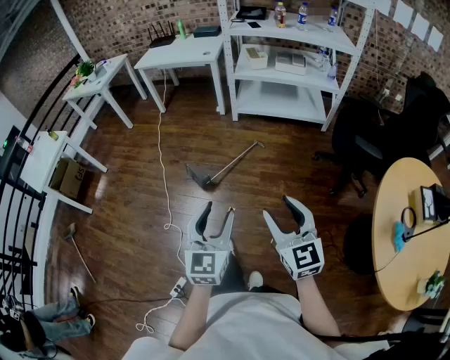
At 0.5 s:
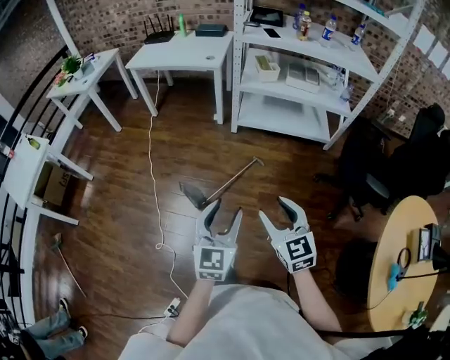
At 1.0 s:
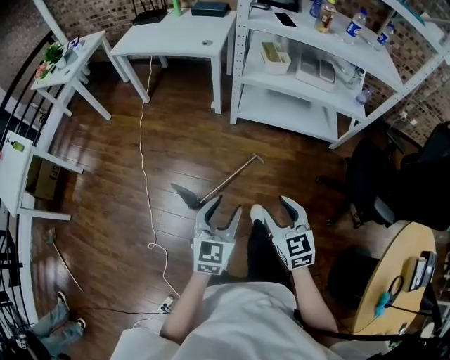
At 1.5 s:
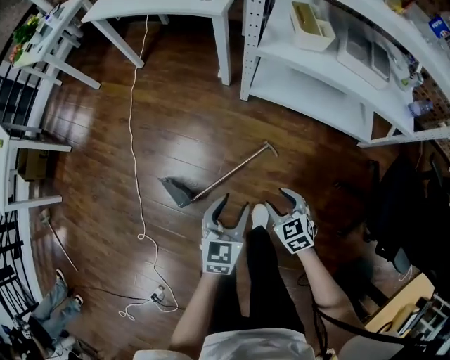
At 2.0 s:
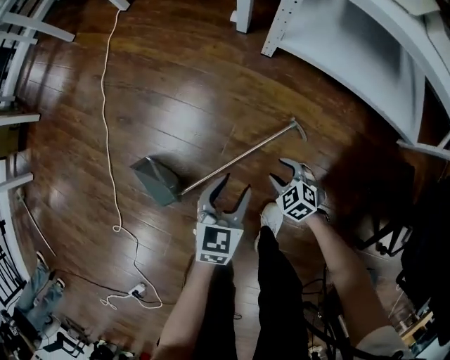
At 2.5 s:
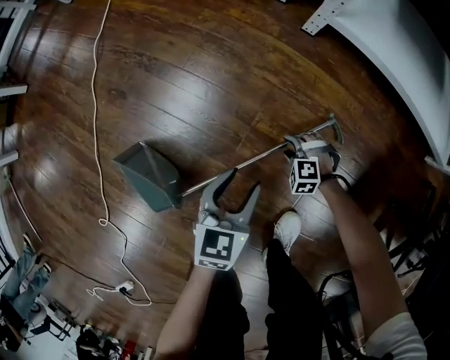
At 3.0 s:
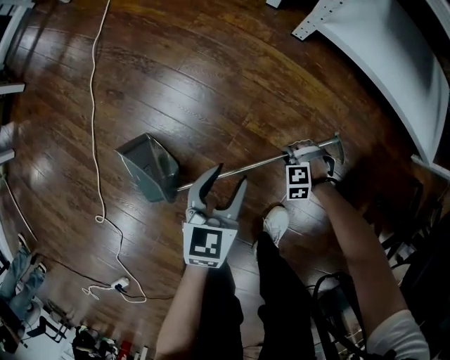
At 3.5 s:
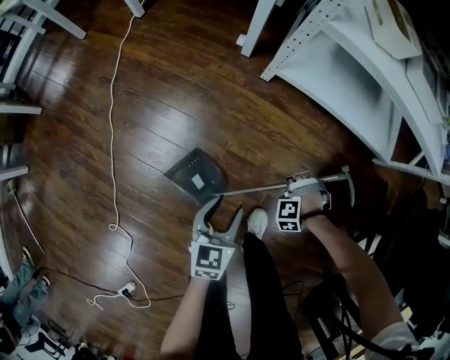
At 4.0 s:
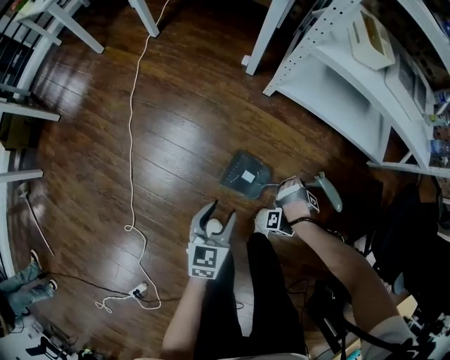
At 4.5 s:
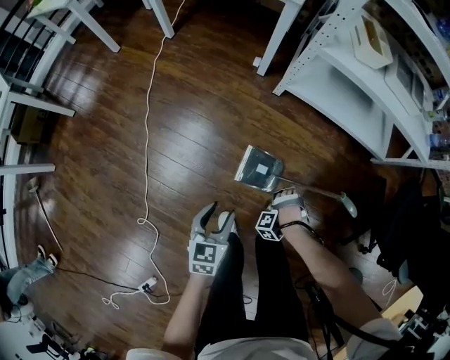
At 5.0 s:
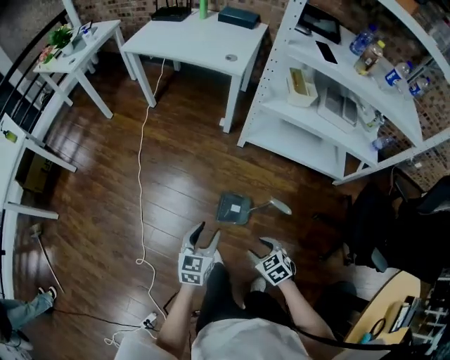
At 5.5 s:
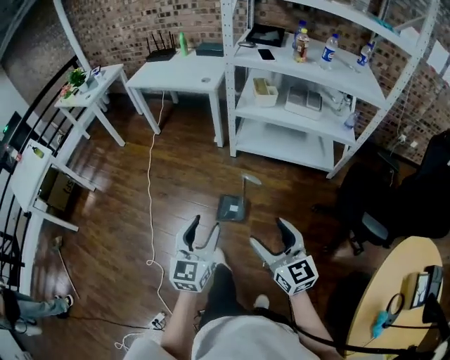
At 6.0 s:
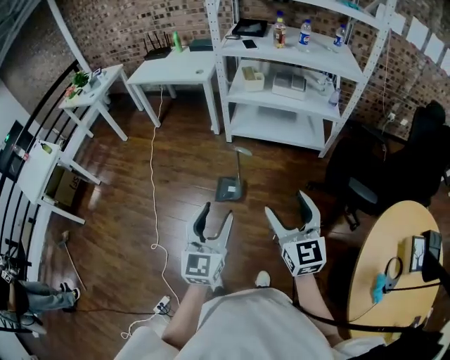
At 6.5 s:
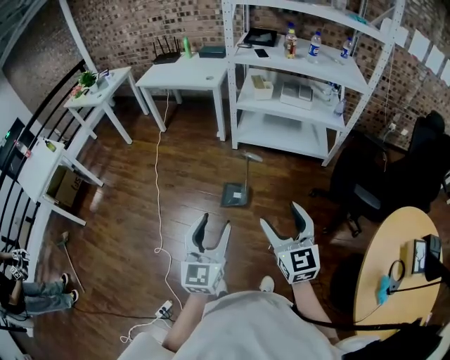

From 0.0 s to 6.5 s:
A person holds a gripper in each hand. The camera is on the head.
From 0.0 s to 2.0 s: The two grippers travel together, forward, some 70 cm. Both grippers travel together downward, about 70 cm. The left gripper turns by approximately 30 degrees. Meanwhile the right gripper tilts its fingers approximately 50 degrees downward.
From 2.0 s to 4.5 s: Both grippers travel together upward, some 20 cm. The right gripper changes its angle by approximately 80 degrees, and closes, then reopens.
From 4.5 s to 6.5 s: The grippers both shift upward by about 60 cm. The right gripper tilts its fingers about 50 degrees upward, and opens; the left gripper tips its fingers upward by some 30 degrees.

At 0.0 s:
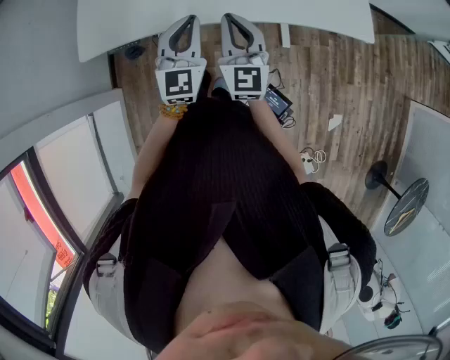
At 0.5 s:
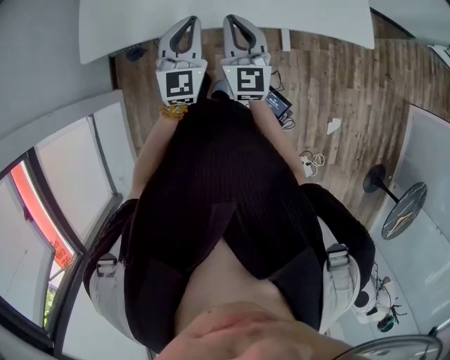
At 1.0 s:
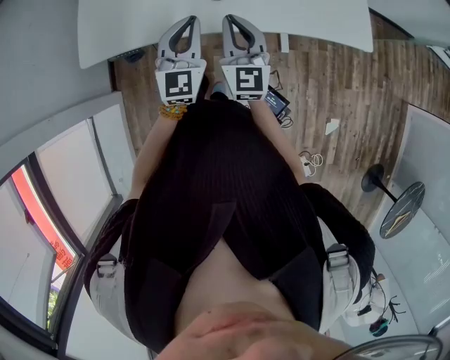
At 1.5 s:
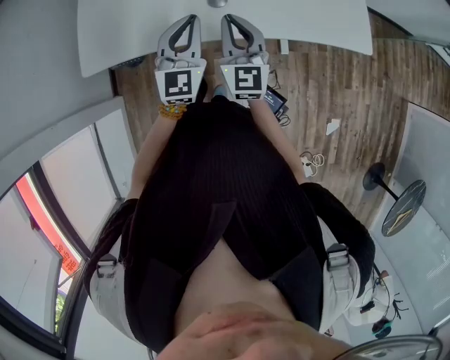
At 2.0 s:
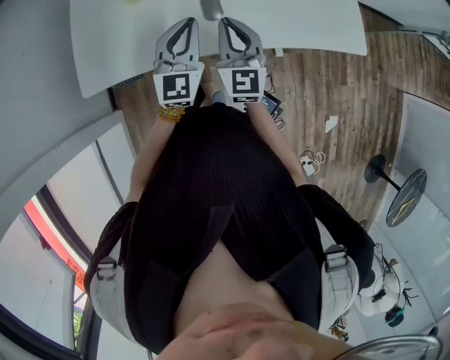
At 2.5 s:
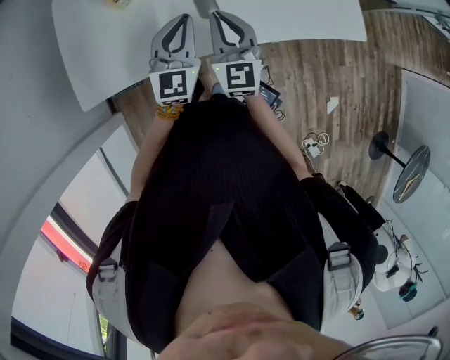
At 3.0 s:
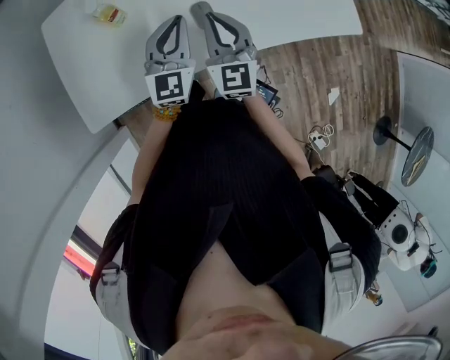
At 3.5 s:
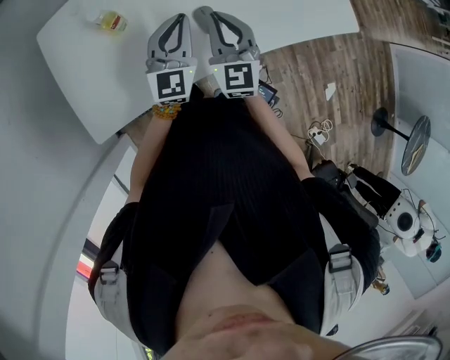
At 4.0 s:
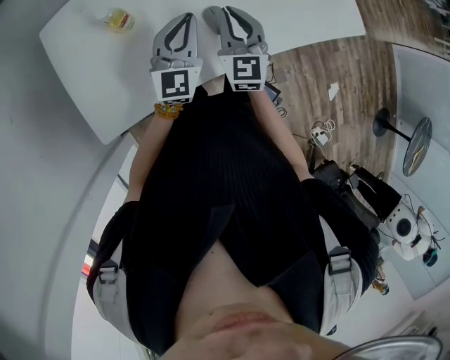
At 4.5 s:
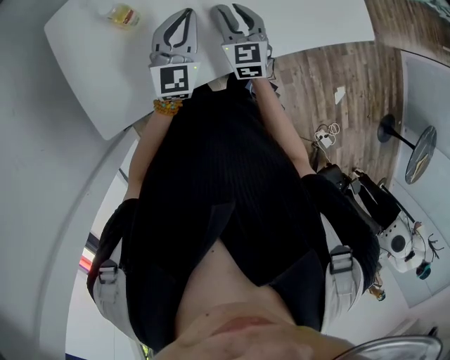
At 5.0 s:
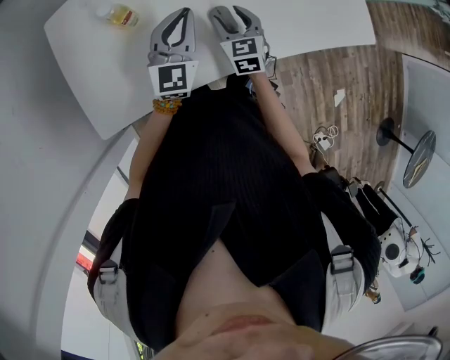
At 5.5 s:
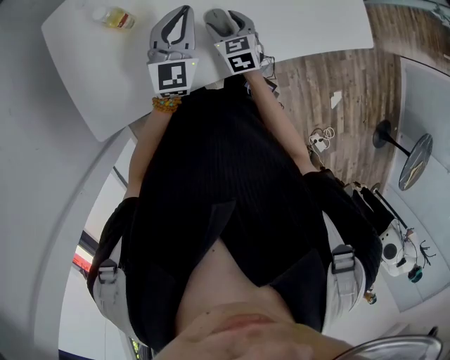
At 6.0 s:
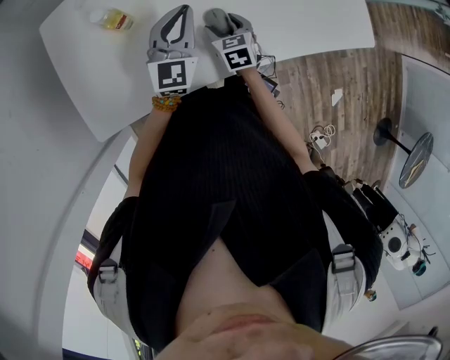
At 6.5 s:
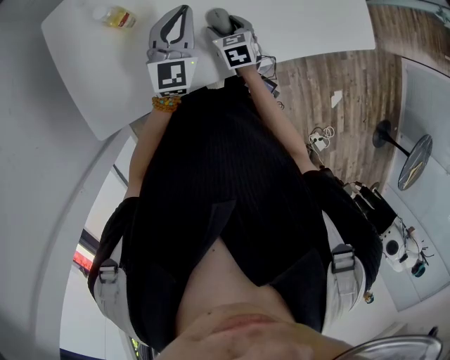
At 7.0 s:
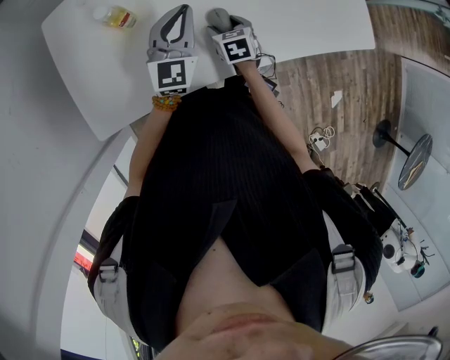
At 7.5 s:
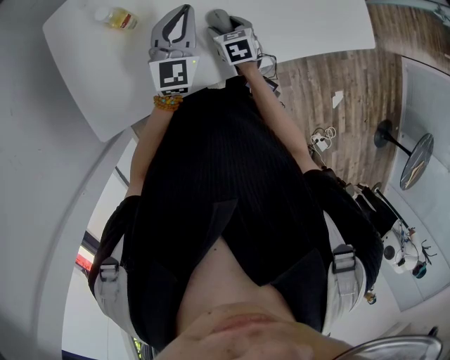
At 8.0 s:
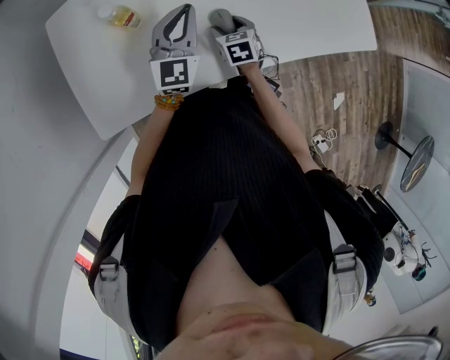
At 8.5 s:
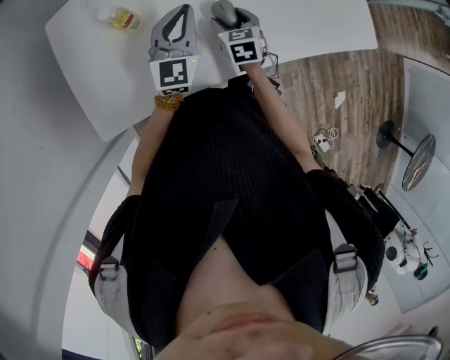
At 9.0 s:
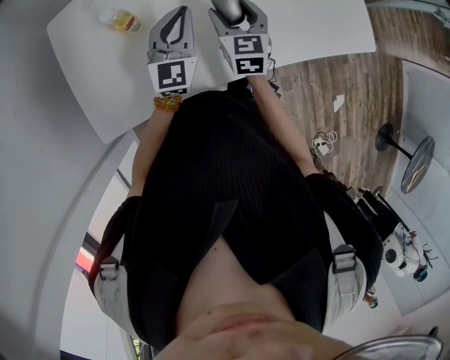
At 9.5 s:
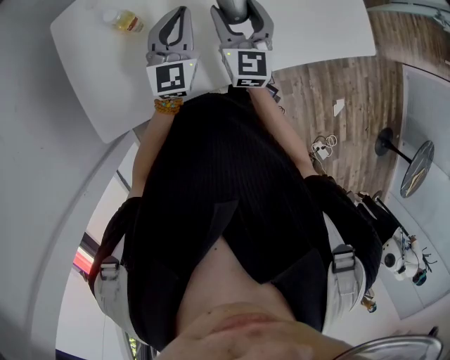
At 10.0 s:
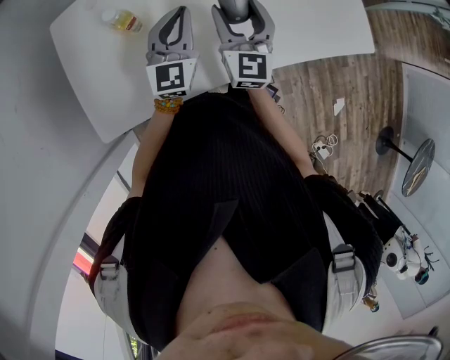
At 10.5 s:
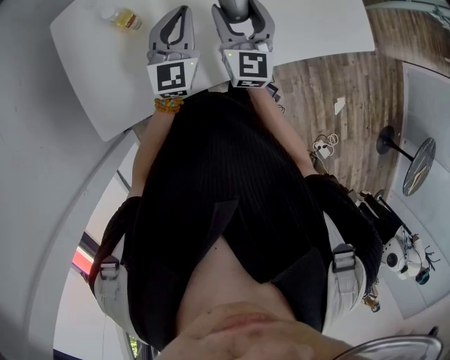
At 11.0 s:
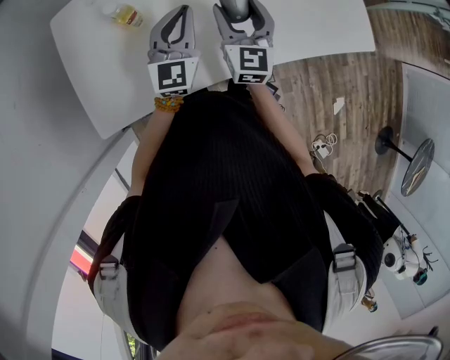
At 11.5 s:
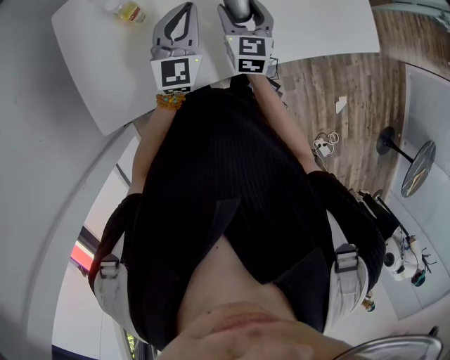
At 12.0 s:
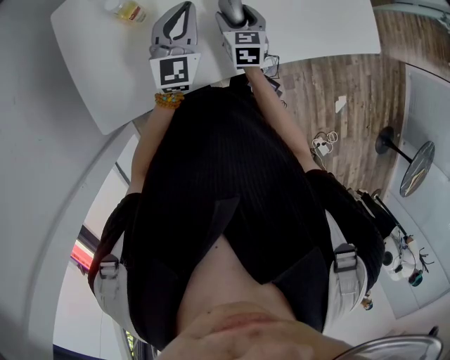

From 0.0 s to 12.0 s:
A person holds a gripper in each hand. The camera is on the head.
From 0.0 s to 2.0 s: The two grippers go some 10 cm forward.
From 2.0 s to 4.0 s: Both grippers move forward and to the left, about 10 cm.
From 4.0 s to 6.0 s: The right gripper is displaced downward by about 20 cm, points its fingers roughly 30 degrees further downward, and opens.
From 6.0 s to 8.0 s: The grippers make only small movements.
From 8.0 s to 10.0 s: The right gripper goes about 25 cm upward, and points its fingers approximately 50 degrees further upward.
From 10.0 s to 12.0 s: The right gripper travels downward by some 15 cm, and tilts its fingers approximately 30 degrees downward.

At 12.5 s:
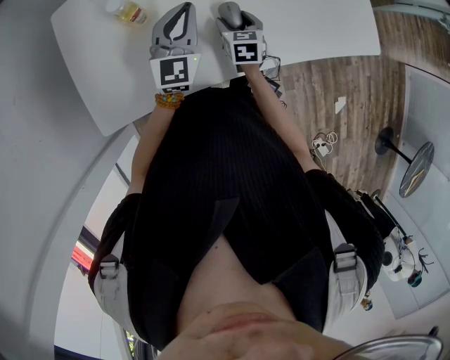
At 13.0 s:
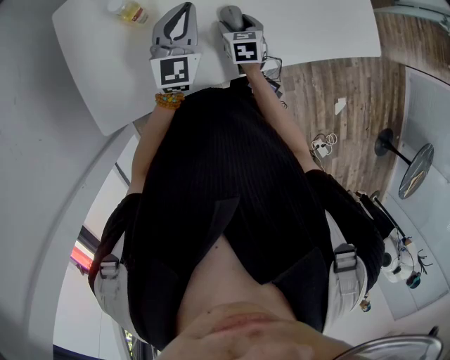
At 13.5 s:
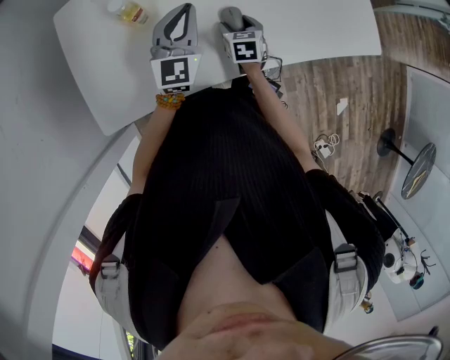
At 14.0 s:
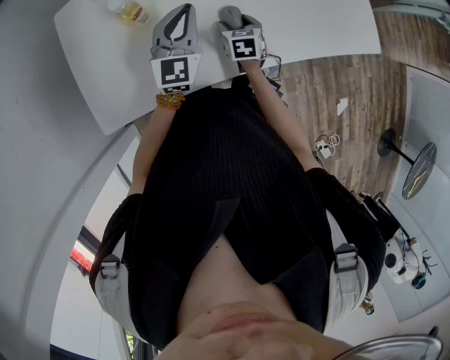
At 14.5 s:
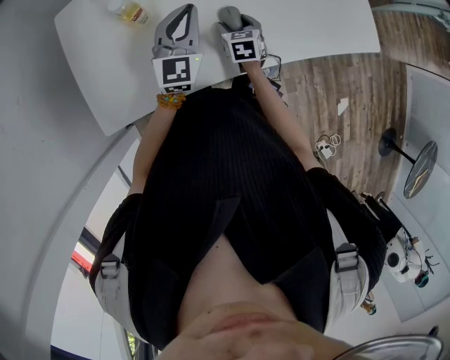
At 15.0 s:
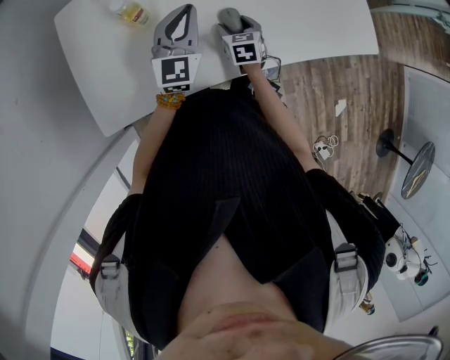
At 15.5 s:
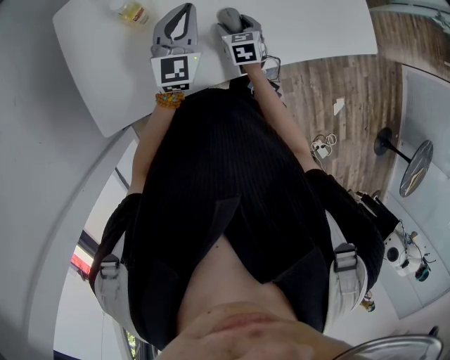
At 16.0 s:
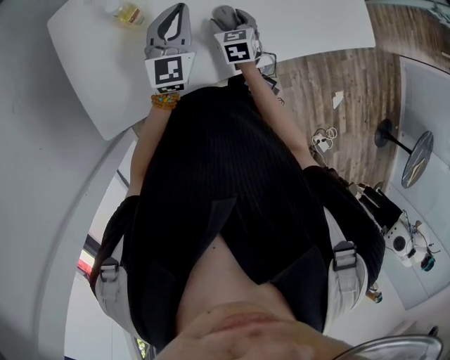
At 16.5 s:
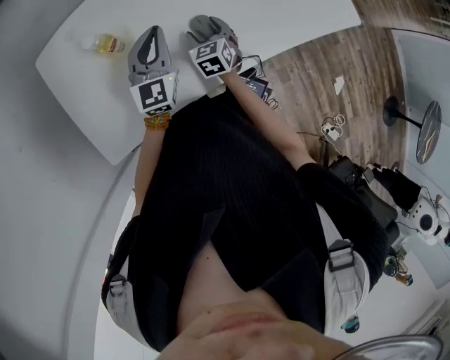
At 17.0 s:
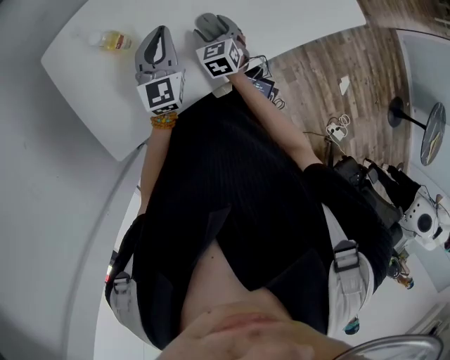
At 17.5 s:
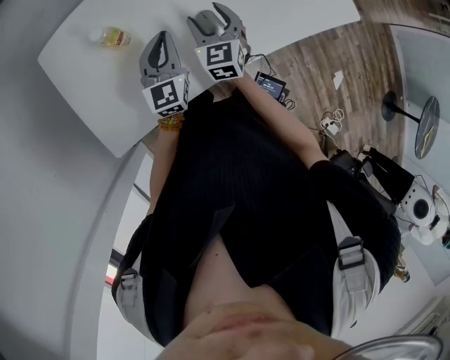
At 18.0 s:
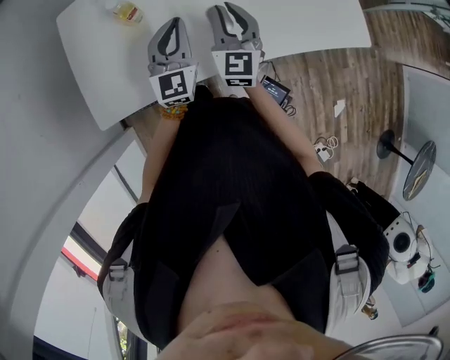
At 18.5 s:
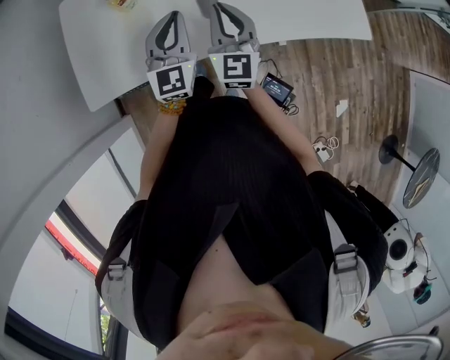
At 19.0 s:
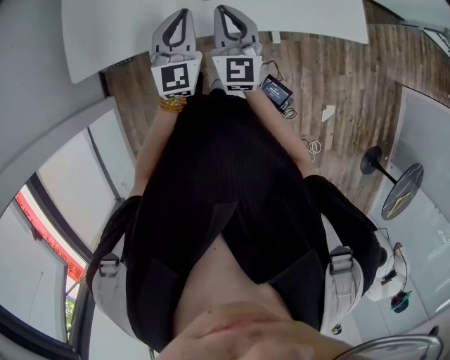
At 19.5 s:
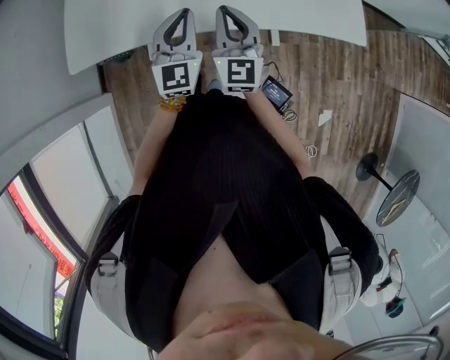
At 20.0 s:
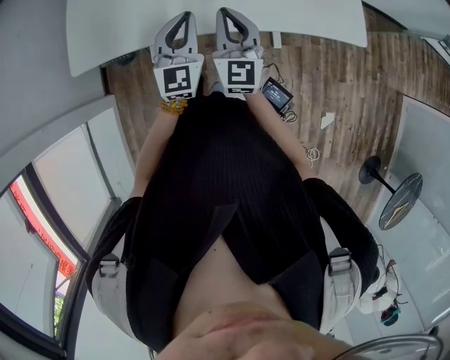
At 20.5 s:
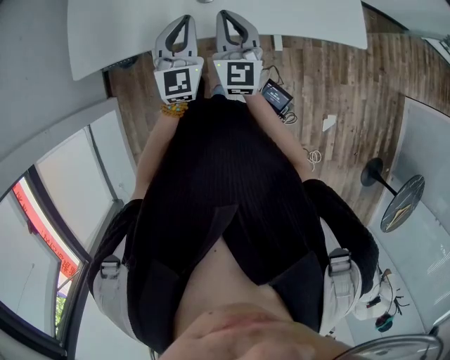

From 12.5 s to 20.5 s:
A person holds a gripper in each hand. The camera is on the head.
From 12.5 s to 16.5 s: The grippers move only a little.
From 16.5 s to 18.5 s: The right gripper heads upward and backward, covering approximately 20 cm, angles its fingers upward, by some 40 degrees, and closes up. Meanwhile the left gripper heads backward and to the right, covering some 10 cm.
From 18.5 s to 20.5 s: The right gripper is displaced backward by about 10 cm. Meanwhile the left gripper moves backward and to the right, about 10 cm.
